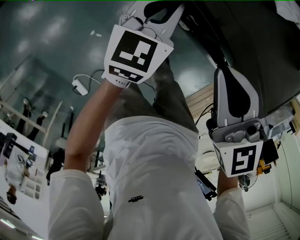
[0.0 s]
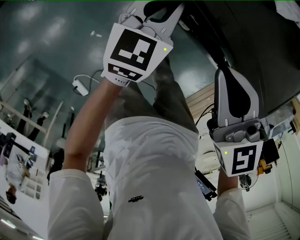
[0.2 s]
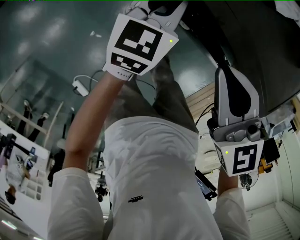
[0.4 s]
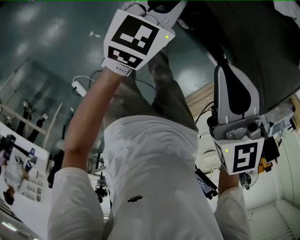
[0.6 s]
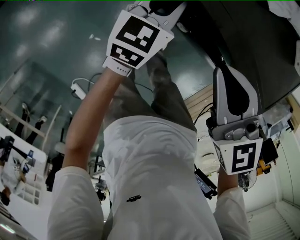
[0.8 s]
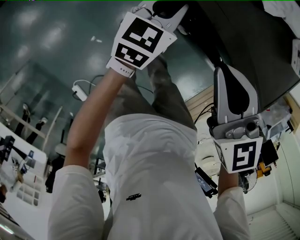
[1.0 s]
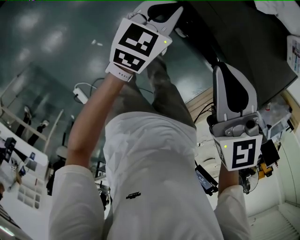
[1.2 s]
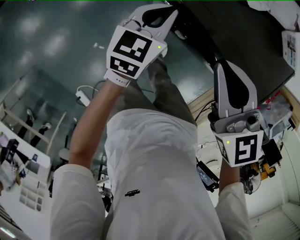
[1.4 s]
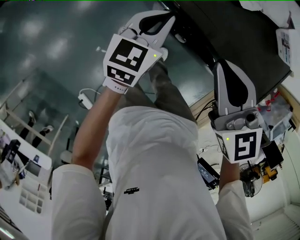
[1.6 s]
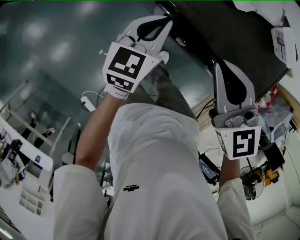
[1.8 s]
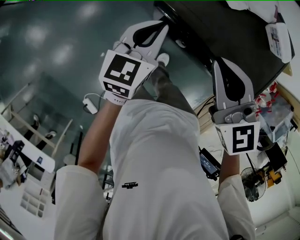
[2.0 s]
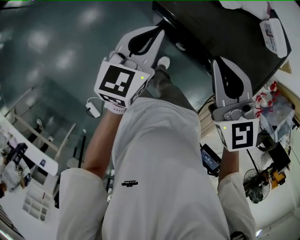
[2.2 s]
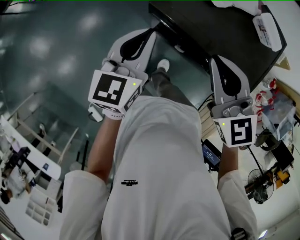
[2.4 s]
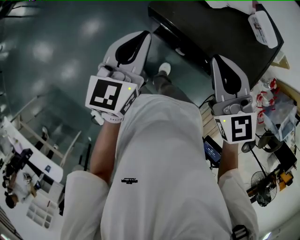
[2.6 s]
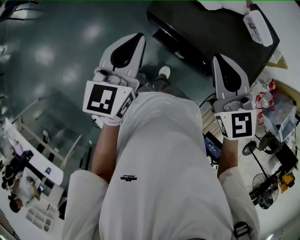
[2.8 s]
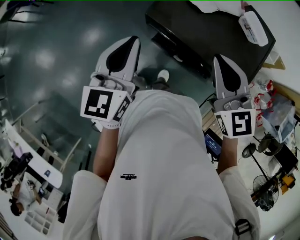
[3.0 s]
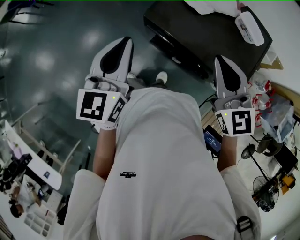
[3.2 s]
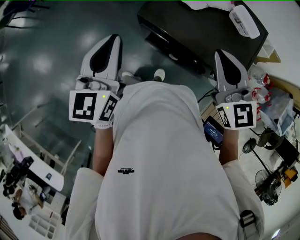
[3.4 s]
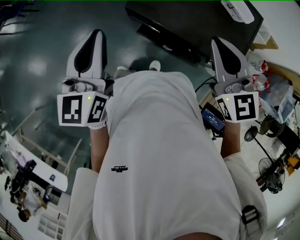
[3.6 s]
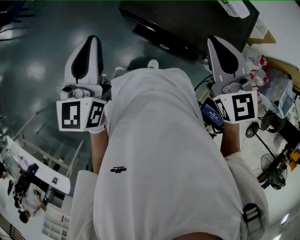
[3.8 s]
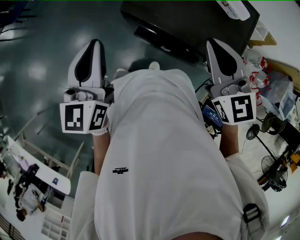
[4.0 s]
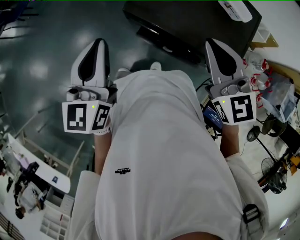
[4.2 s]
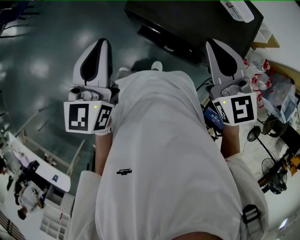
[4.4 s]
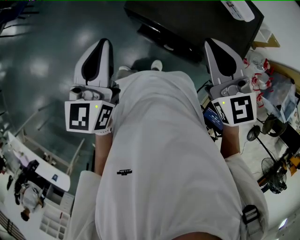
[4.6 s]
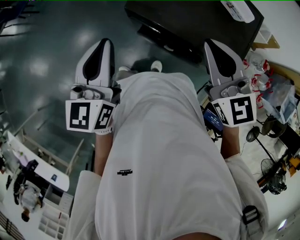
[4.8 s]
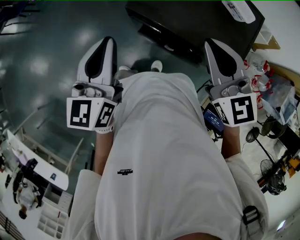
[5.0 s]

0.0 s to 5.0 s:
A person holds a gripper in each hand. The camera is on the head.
0.0 to 1.6 s: The two grippers go some 5 cm upward.
1.6 to 3.4 s: The left gripper heads upward, covering some 25 cm, and swivels about 20 degrees; the right gripper moves upward and to the right, approximately 15 cm.
3.4 to 5.0 s: The grippers move only a little.

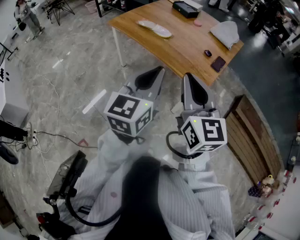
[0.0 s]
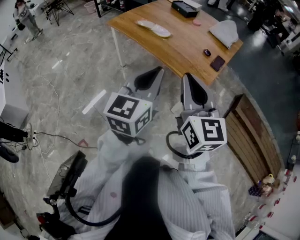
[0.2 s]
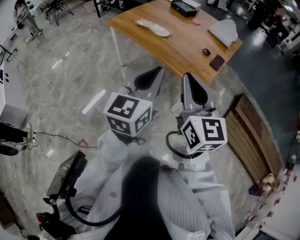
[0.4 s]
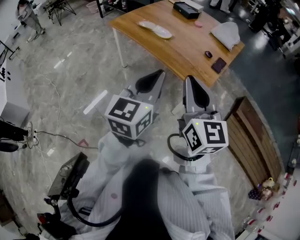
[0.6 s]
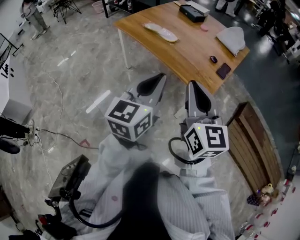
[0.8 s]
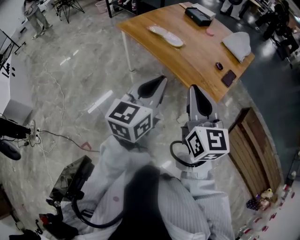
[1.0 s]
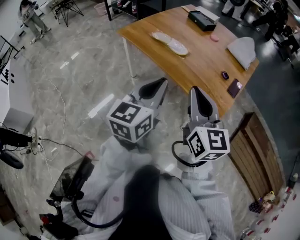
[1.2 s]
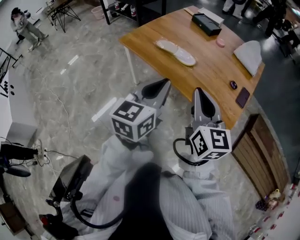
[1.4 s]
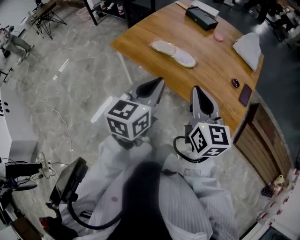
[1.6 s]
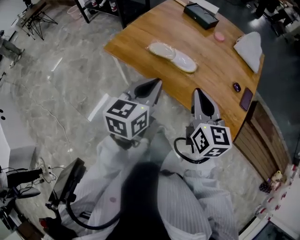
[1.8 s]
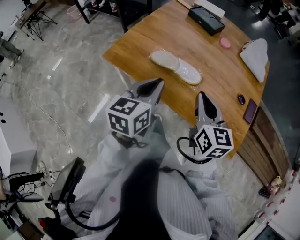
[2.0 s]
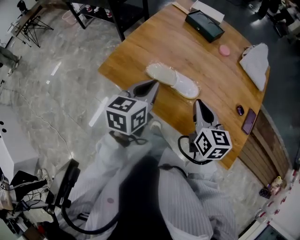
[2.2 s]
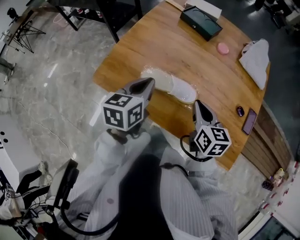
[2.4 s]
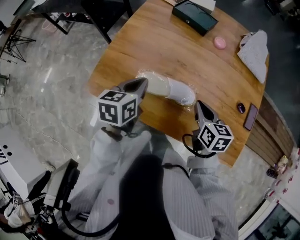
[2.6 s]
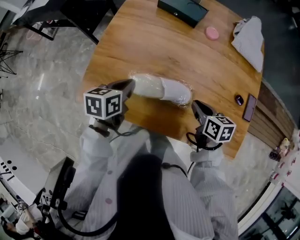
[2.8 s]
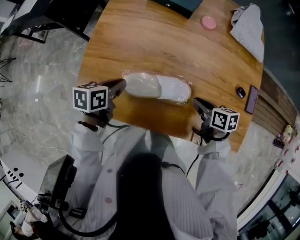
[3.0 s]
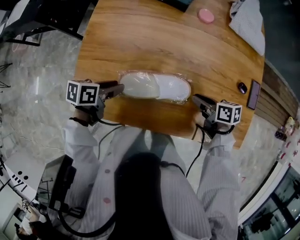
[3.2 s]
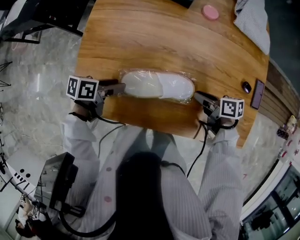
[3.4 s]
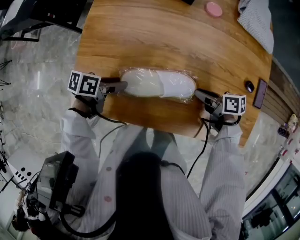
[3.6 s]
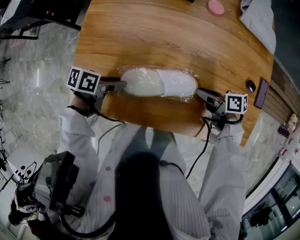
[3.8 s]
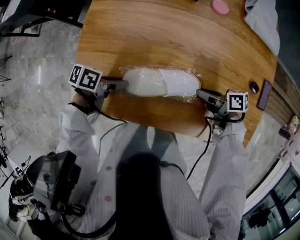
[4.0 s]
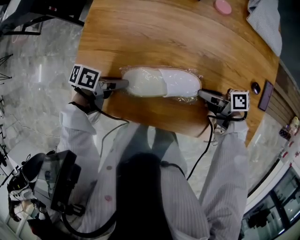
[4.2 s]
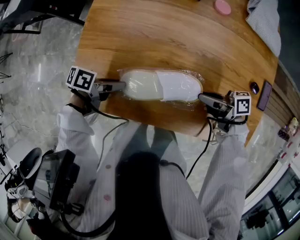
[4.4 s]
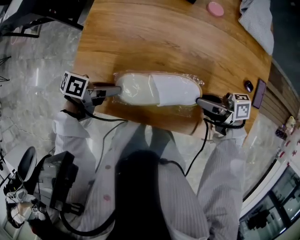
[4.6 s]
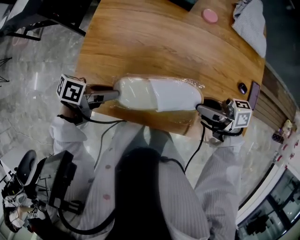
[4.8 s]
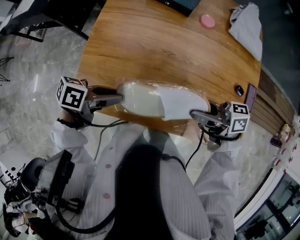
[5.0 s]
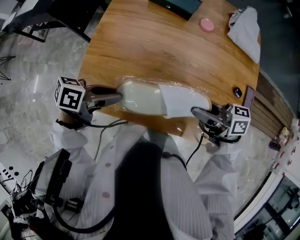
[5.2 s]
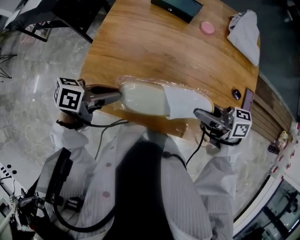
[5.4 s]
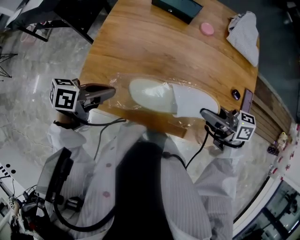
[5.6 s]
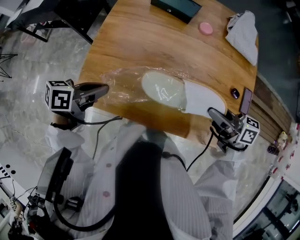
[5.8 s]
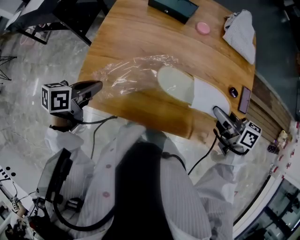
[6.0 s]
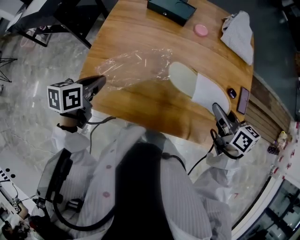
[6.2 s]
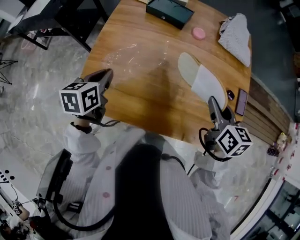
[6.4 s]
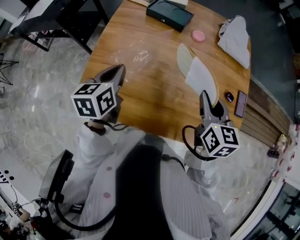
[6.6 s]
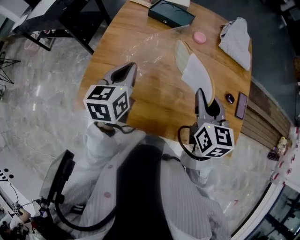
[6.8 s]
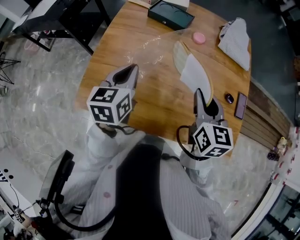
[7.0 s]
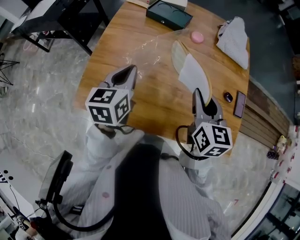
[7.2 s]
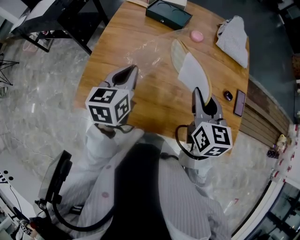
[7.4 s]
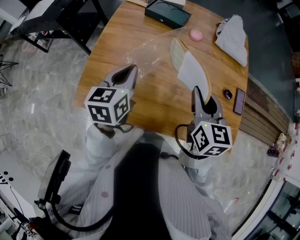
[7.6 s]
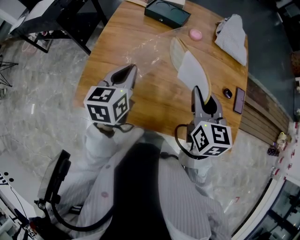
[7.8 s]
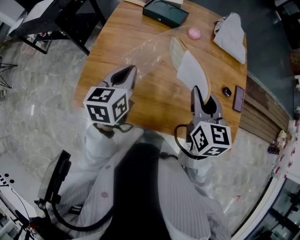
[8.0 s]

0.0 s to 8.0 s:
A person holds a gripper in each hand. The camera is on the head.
0.0 to 1.6 s: The grippers both shift forward and to the left by roughly 30 cm.
1.6 to 3.2 s: The right gripper heads downward, covering roughly 30 cm, tilts its fingers about 30 degrees downward, and opens its fingers, while the left gripper changes place by approximately 50 cm, angles its fingers downward, by approximately 30 degrees, and opens.
3.2 to 4.8 s: The right gripper heads upward, covering some 15 cm, and angles its fingers upward, by some 40 degrees. Meanwhile the left gripper moves roughly 5 cm.
4.8 to 6.4 s: The right gripper moves about 10 cm, and changes its angle by roughly 70 degrees. Meanwhile the left gripper heads upward, covering approximately 10 cm, swivels about 50 degrees, and closes.
6.4 to 8.0 s: The left gripper shifts some 10 cm to the right. Meanwhile the right gripper goes approximately 5 cm to the left.

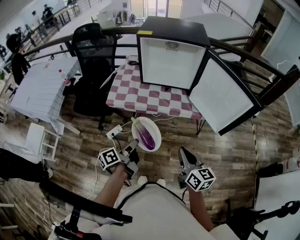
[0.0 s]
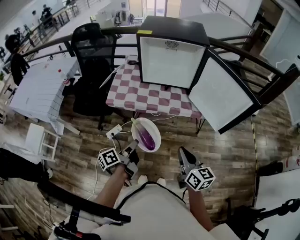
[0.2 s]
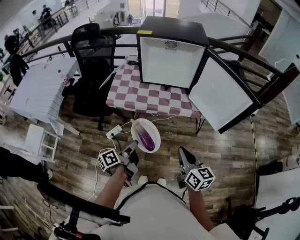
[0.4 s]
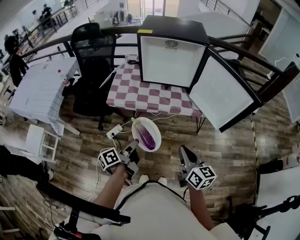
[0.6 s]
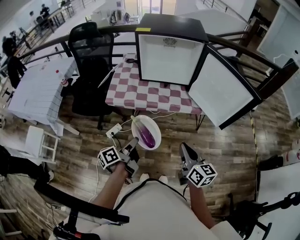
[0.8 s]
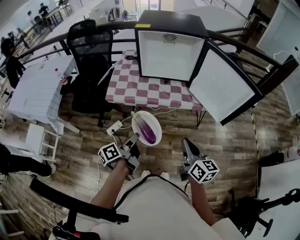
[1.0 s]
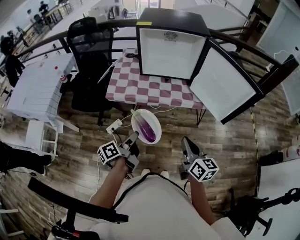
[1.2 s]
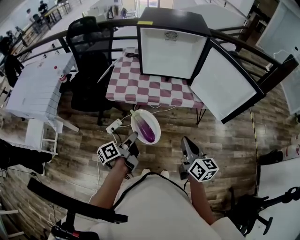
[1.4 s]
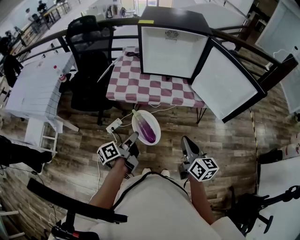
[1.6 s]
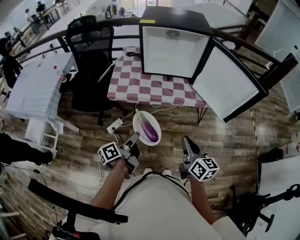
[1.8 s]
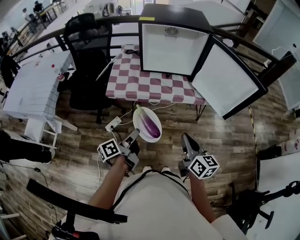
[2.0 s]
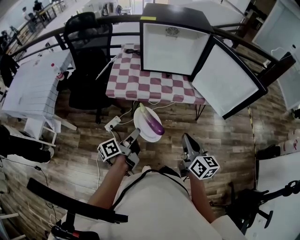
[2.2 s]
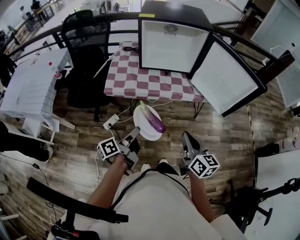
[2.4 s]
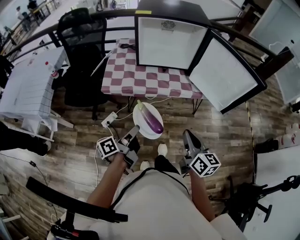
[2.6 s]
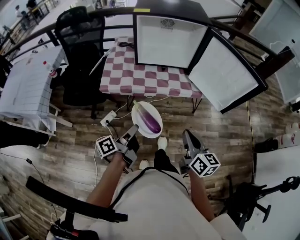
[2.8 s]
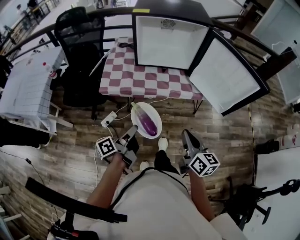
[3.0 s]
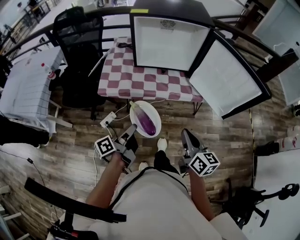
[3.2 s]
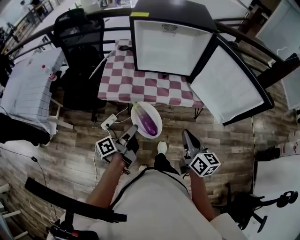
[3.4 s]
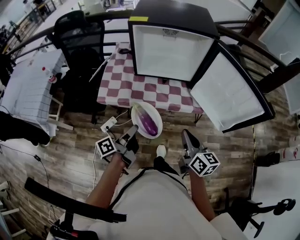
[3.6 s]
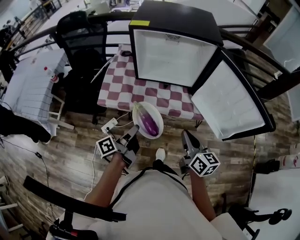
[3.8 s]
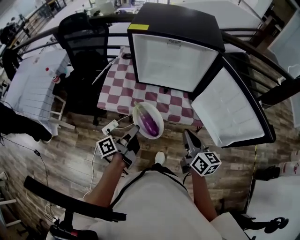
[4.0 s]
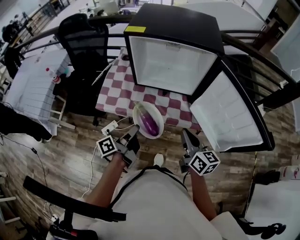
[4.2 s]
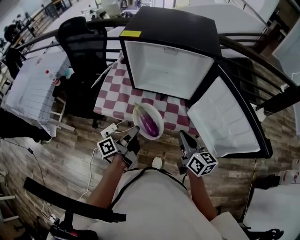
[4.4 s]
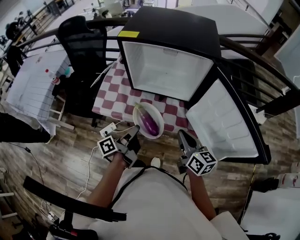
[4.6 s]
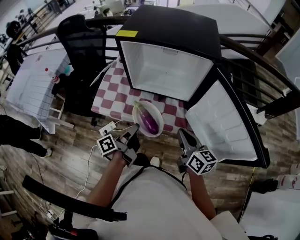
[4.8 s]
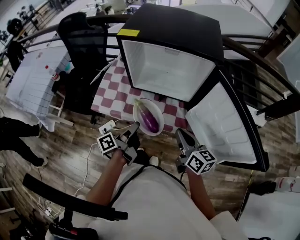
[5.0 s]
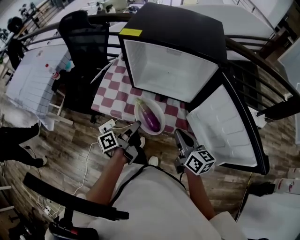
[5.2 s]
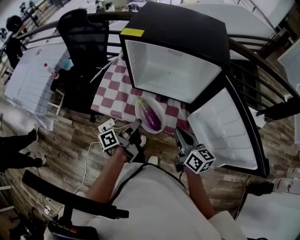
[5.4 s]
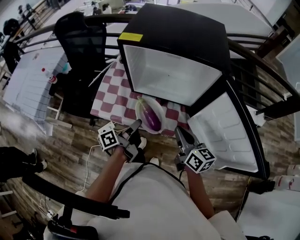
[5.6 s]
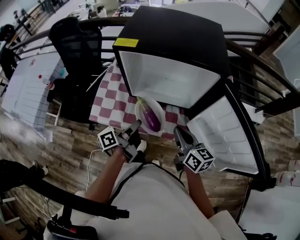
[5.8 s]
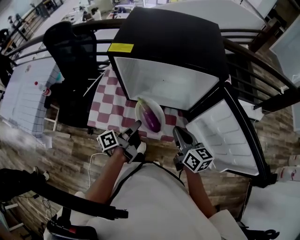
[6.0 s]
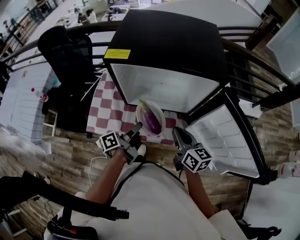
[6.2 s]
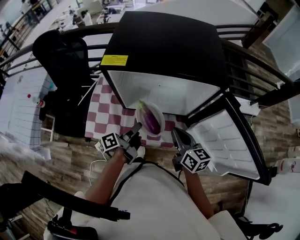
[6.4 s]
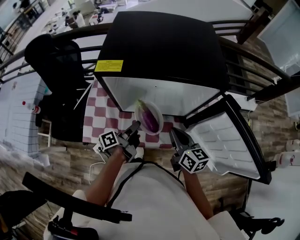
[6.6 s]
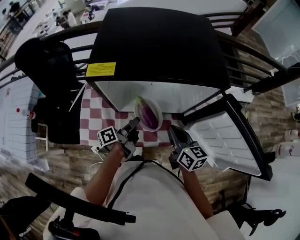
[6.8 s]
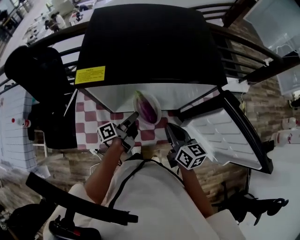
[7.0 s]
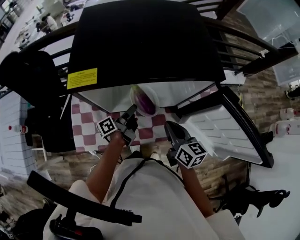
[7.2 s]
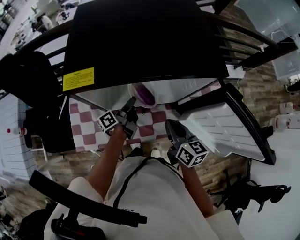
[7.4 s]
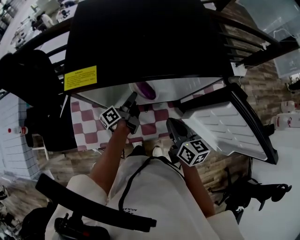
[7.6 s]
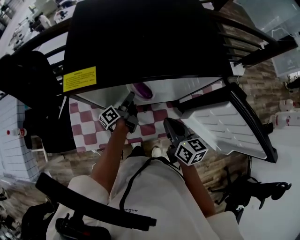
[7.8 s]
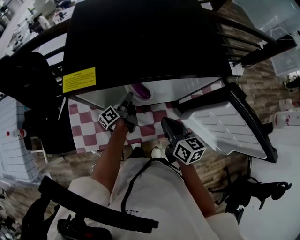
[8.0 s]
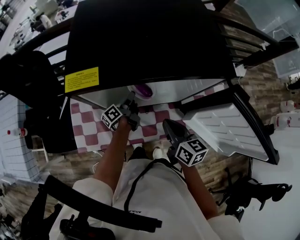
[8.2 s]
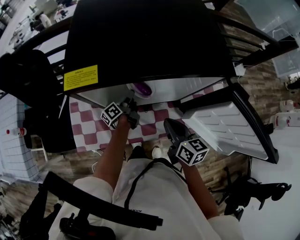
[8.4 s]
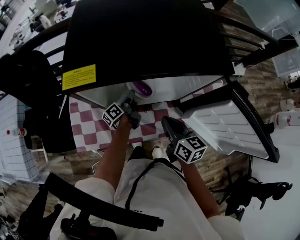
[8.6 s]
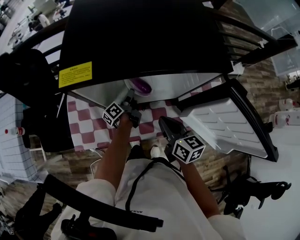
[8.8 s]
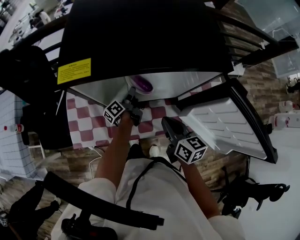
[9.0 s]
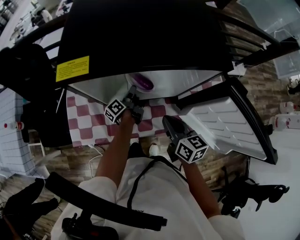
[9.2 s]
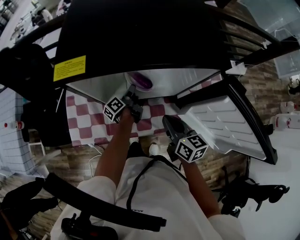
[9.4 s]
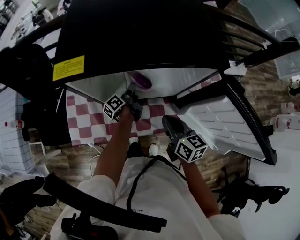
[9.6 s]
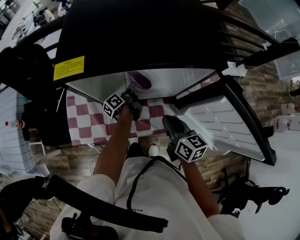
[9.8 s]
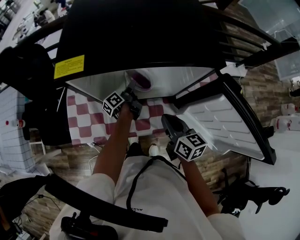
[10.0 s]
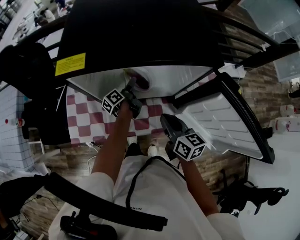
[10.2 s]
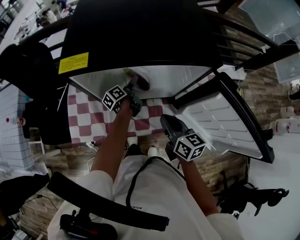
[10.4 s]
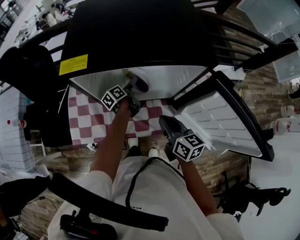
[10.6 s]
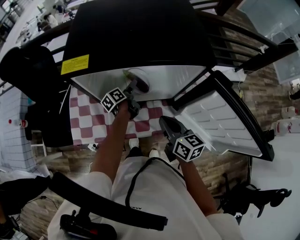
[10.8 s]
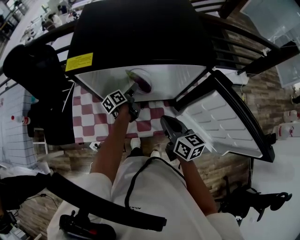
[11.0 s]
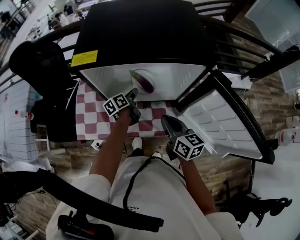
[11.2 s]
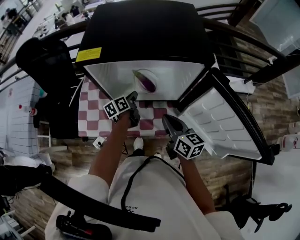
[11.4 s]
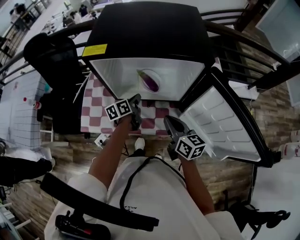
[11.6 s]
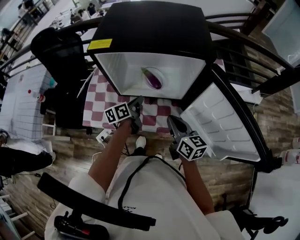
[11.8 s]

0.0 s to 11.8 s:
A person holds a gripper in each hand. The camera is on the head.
3.0 to 4.4 s: The right gripper shifts by about 25 cm.
4.4 to 6.0 s: The right gripper moves approximately 15 cm.
6.0 to 7.4 s: The right gripper changes place by about 10 cm.
10.4 to 11.8 s: The right gripper moves approximately 5 cm.
